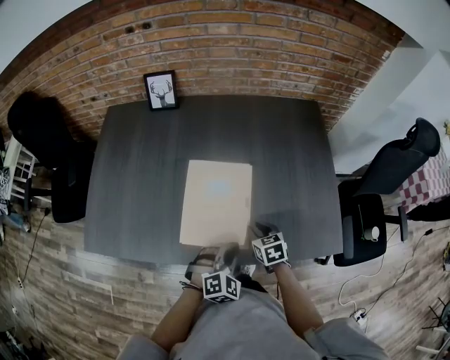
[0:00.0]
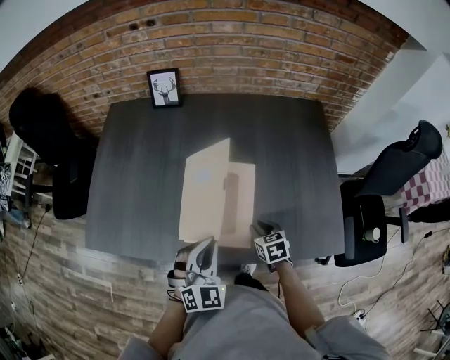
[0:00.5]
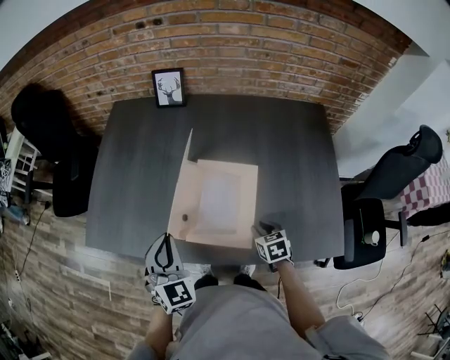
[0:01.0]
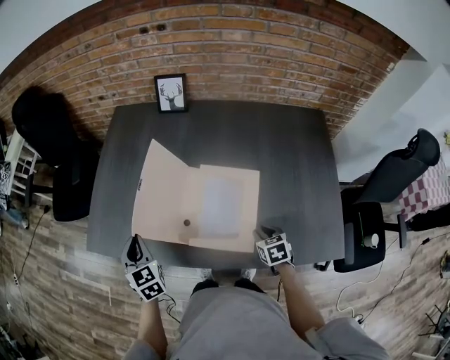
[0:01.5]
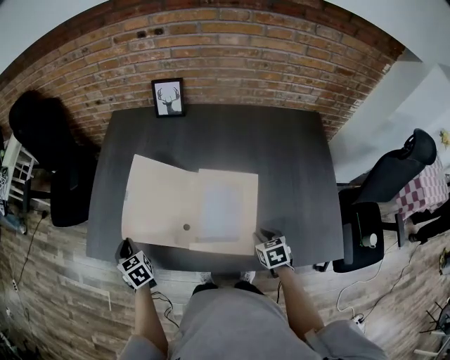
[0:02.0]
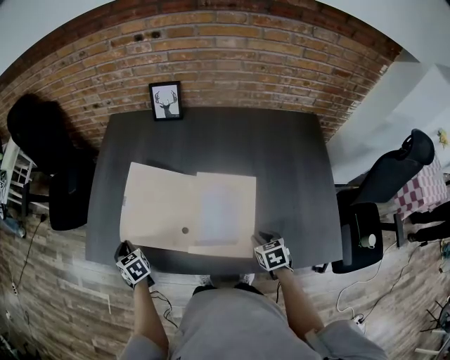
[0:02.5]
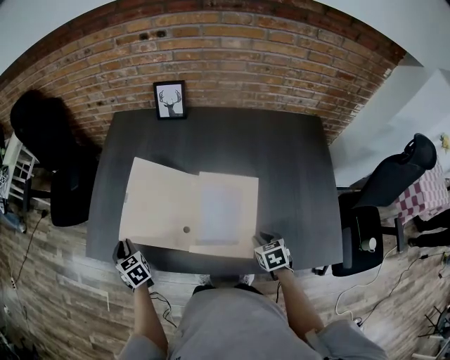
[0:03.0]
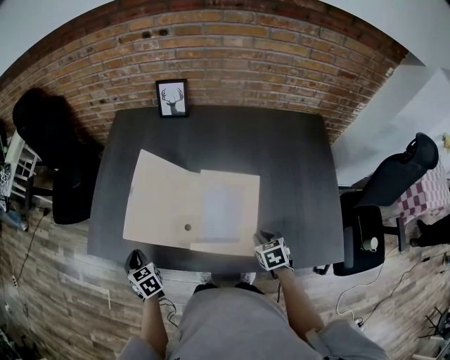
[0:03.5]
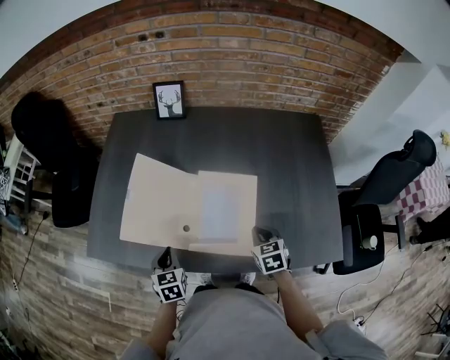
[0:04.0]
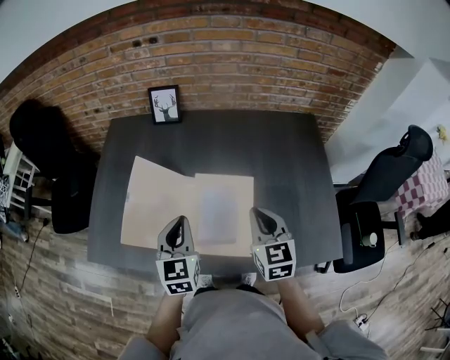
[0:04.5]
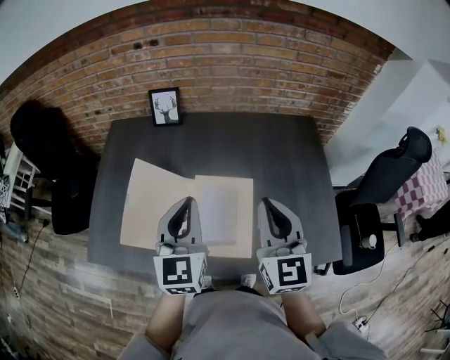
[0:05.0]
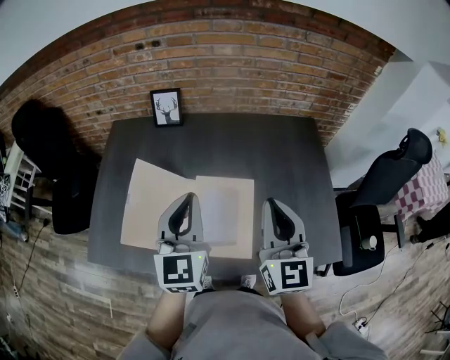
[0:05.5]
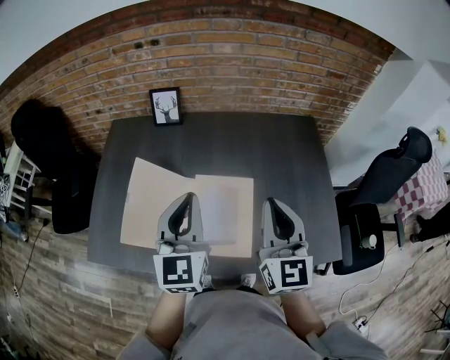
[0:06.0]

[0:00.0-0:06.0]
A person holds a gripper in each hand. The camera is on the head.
0:00.0 to 0:02.0: The left gripper moves approximately 10 cm upward and comes back, and swivels some 80 degrees.
0:02.0 to 0:04.0: The right gripper travels upward by about 5 cm, and closes, while the left gripper travels to the right and backward by some 15 cm, and changes its angle by approximately 20 degrees.
0:04.0 to 0:06.0: The right gripper goes roughly 30 cm upward, and tilts its fingers roughly 50 degrees upward. The left gripper goes approximately 30 cm upward and to the right, and tilts its fingers approximately 40 degrees upward.

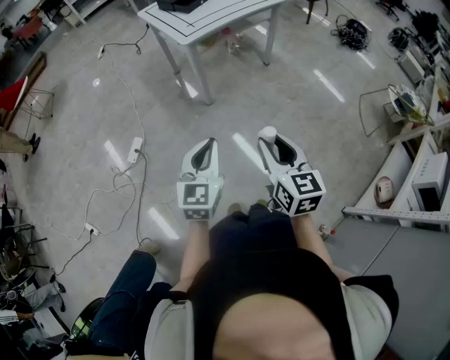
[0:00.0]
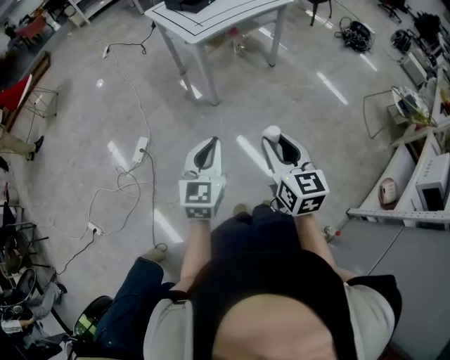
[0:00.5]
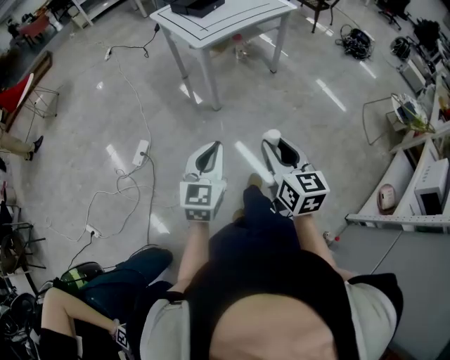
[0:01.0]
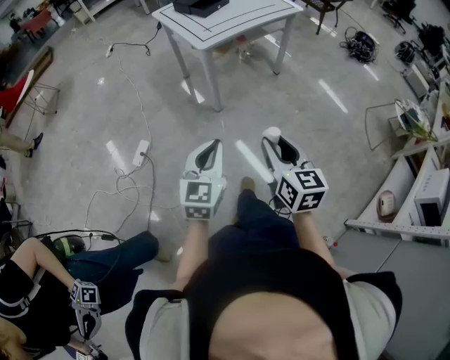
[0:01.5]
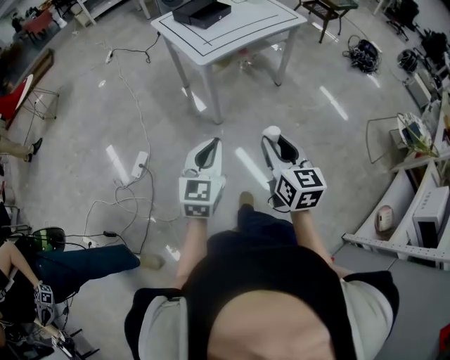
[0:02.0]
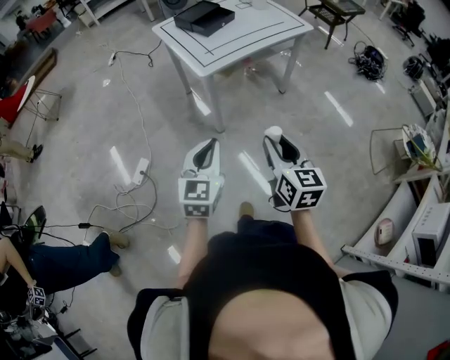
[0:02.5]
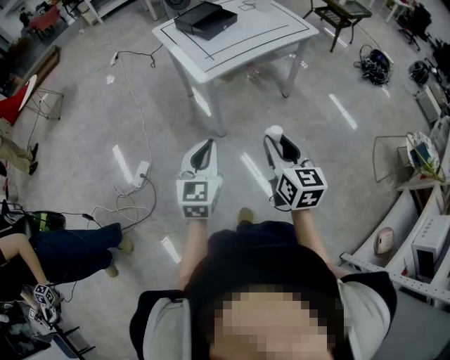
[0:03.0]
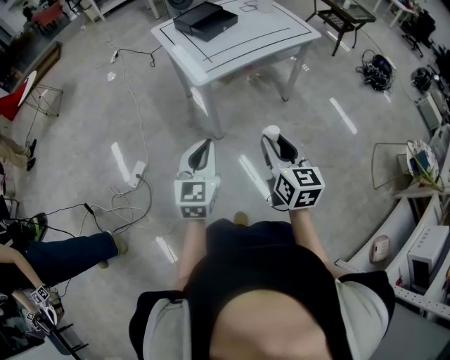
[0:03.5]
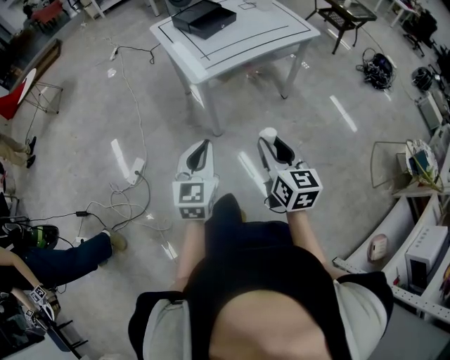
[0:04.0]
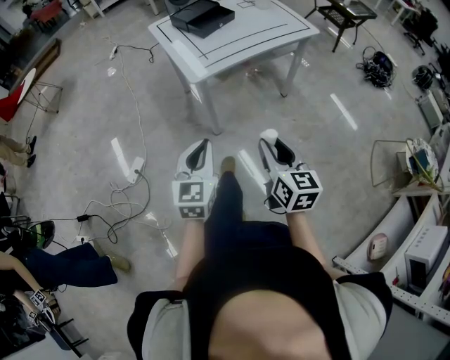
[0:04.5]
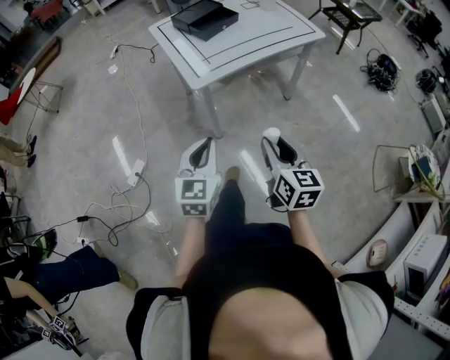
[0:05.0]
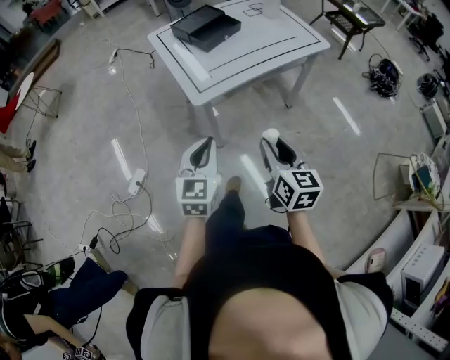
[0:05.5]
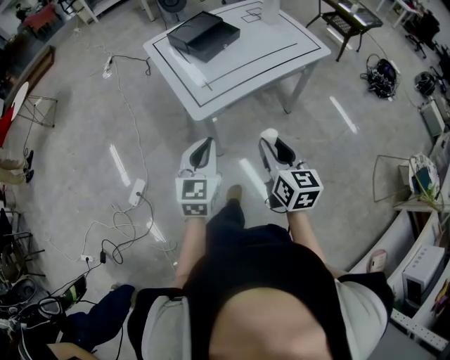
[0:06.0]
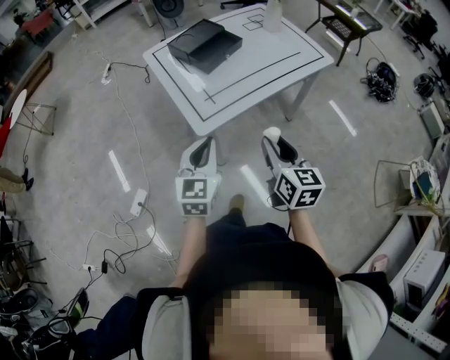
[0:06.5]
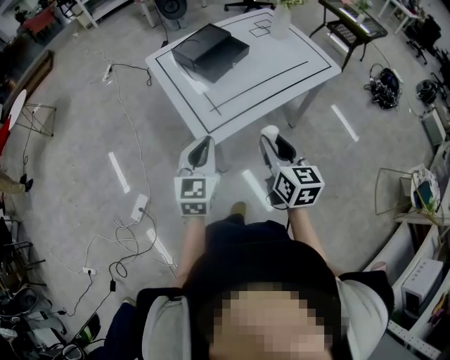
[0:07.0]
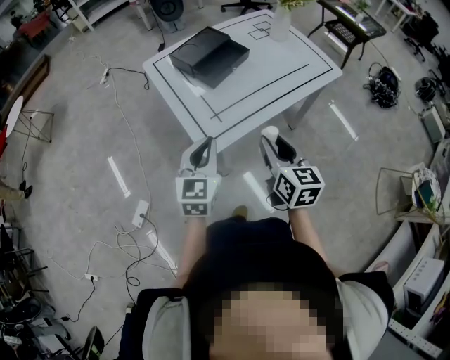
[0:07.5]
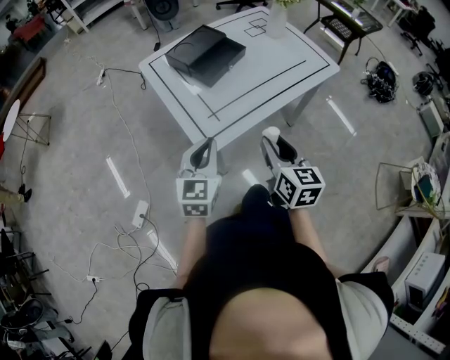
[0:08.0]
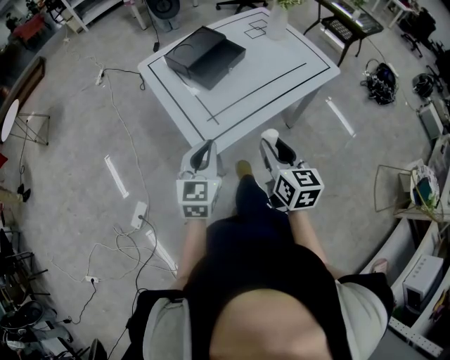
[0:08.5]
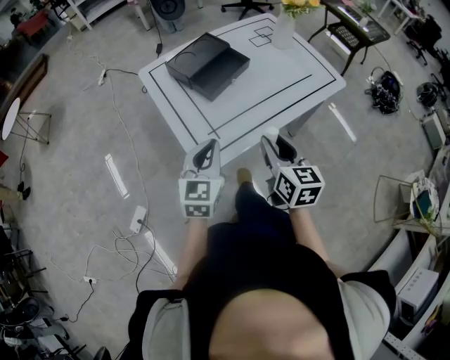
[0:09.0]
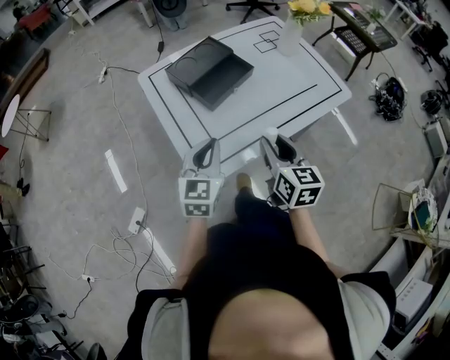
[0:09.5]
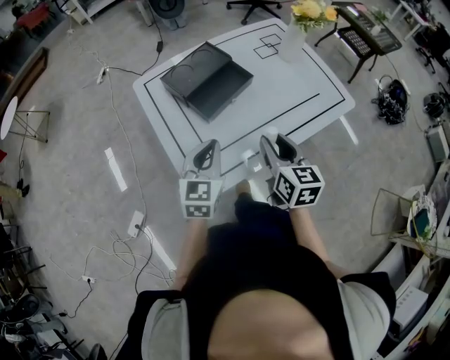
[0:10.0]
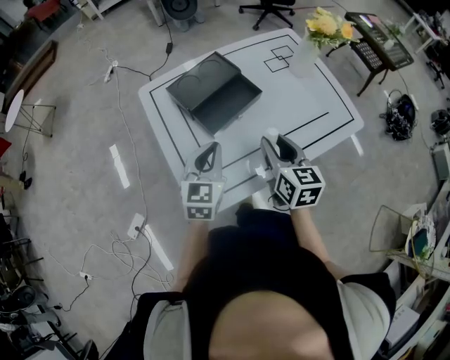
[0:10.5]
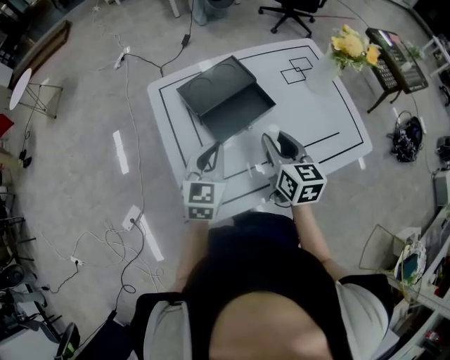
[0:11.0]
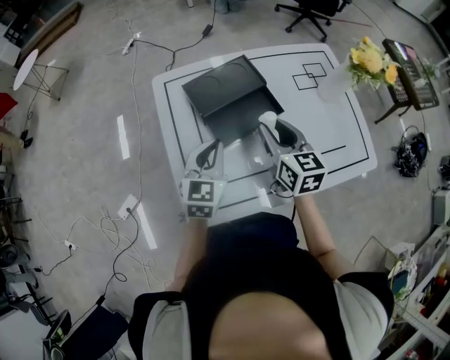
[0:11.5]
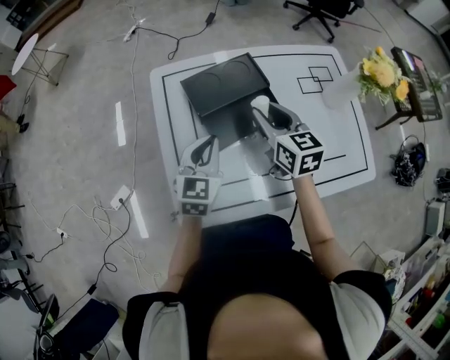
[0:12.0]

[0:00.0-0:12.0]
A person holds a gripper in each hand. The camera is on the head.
0:00.0 to 0:02.0: The grippers both shift forward by about 15 cm.
0:02.0 to 0:04.0: Both grippers move forward, roughly 15 cm.
0:04.0 to 0:06.0: The grippers both shift forward by some 20 cm.
0:06.0 to 0:08.0: The two grippers go some 15 cm forward.
0:08.0 to 0:10.0: The two grippers go some 20 cm forward.
0:10.0 to 0:12.0: The right gripper heads forward, covering roughly 25 cm, and swivels roughly 30 degrees. The left gripper moves forward, about 15 cm.

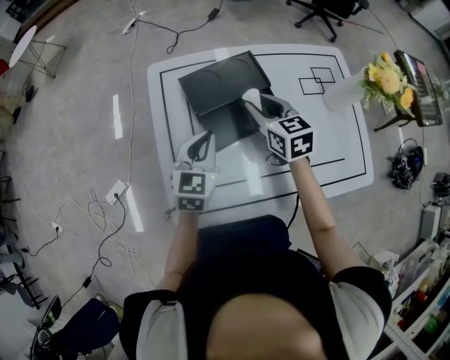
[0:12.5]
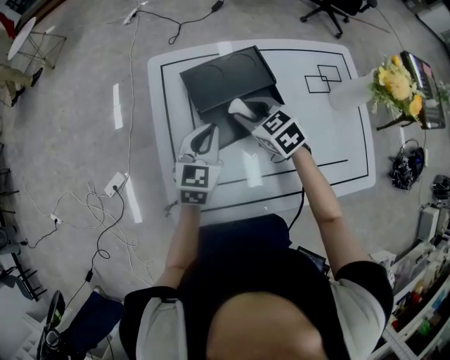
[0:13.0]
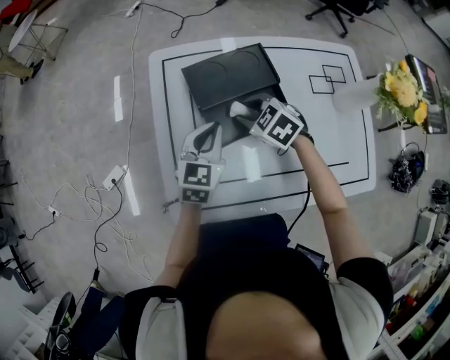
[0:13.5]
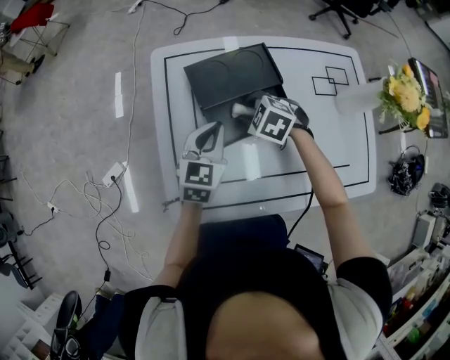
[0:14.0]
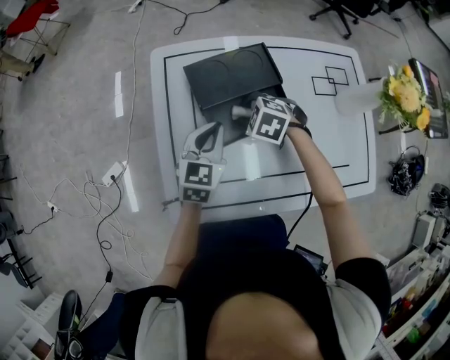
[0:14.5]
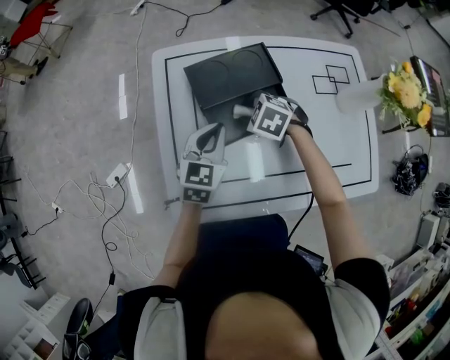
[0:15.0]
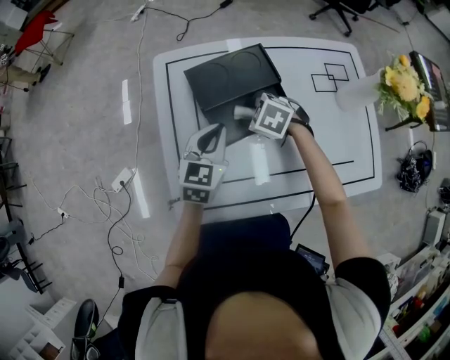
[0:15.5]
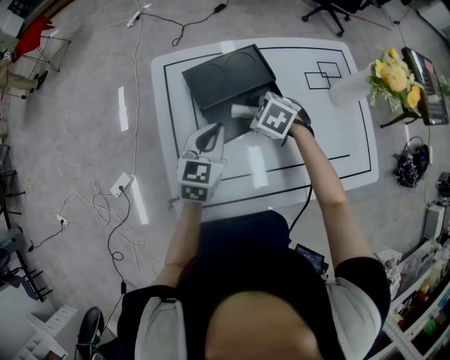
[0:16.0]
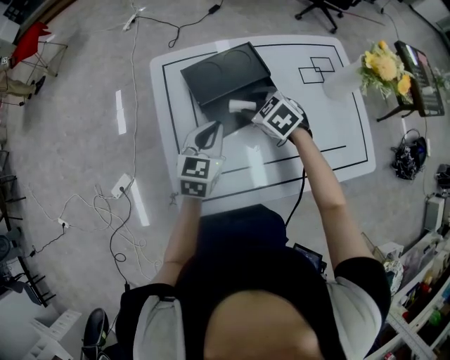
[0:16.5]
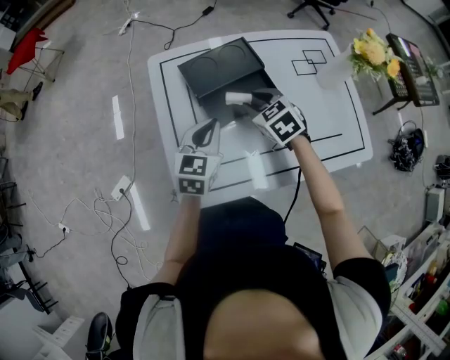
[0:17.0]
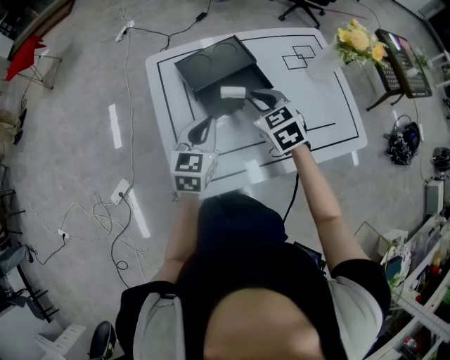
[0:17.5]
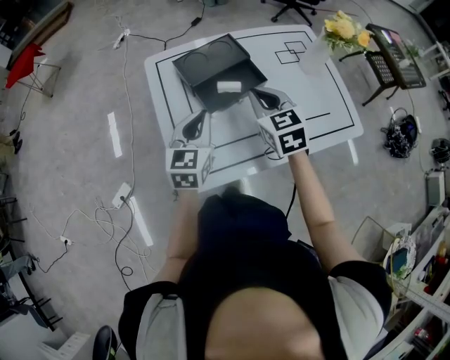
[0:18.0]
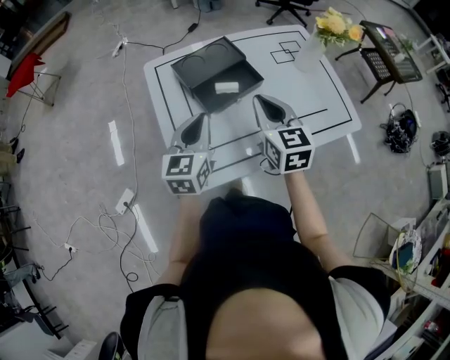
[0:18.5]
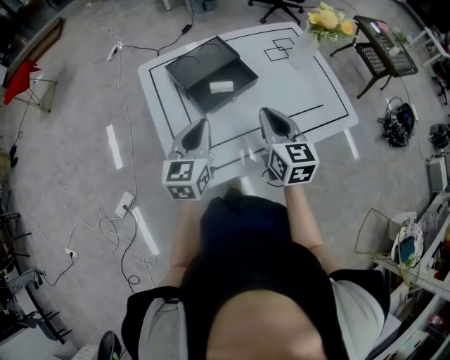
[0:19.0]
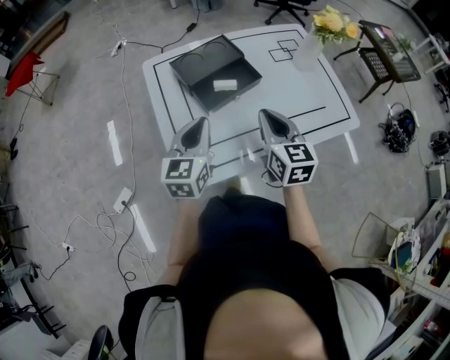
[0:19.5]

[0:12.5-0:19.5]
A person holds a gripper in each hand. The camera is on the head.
0:12.5 to 0:14.5: The right gripper goes approximately 10 cm downward, and tilts its fingers approximately 40 degrees downward.
0:14.5 to 0:16.0: The right gripper opens.
0:16.0 to 0:17.5: The left gripper moves backward, some 5 cm. Meanwhile the right gripper moves upward and backward, roughly 15 cm, swivels approximately 40 degrees, and closes its fingers.
0:17.5 to 0:19.5: The left gripper is displaced backward by some 5 cm, while the right gripper is displaced backward and upward by roughly 15 cm, and changes its angle by roughly 40 degrees.

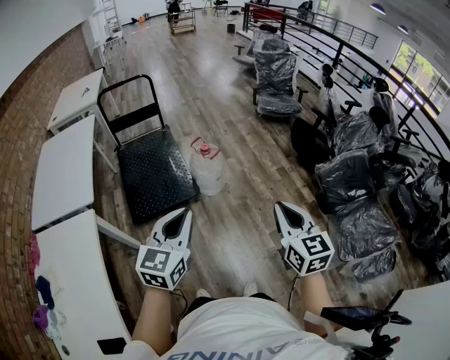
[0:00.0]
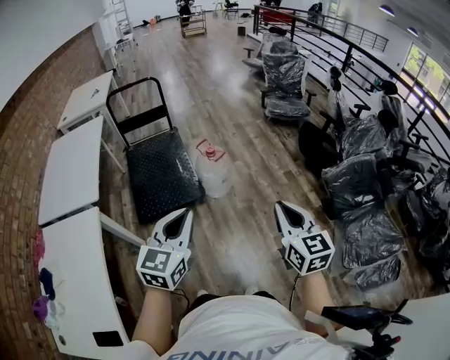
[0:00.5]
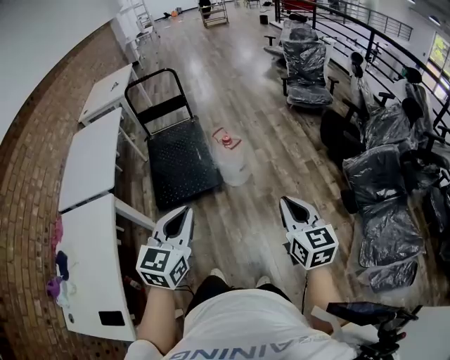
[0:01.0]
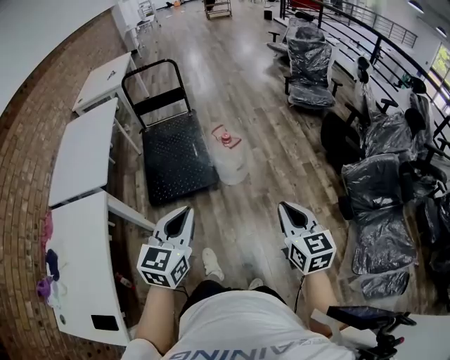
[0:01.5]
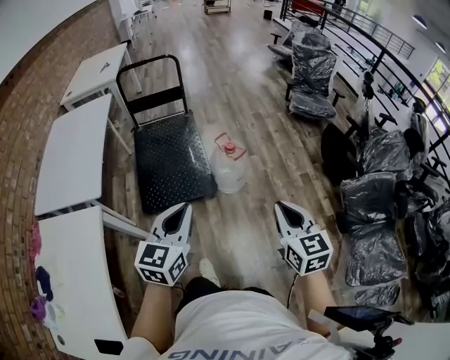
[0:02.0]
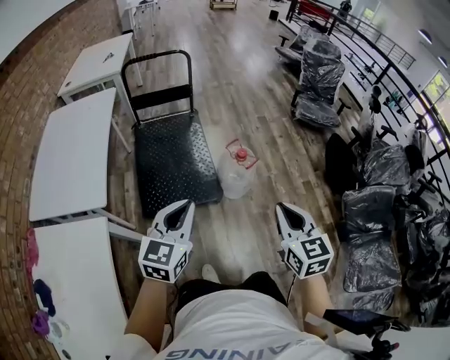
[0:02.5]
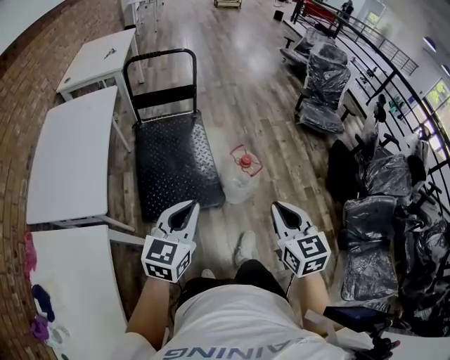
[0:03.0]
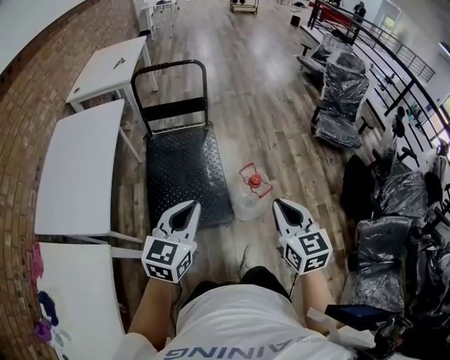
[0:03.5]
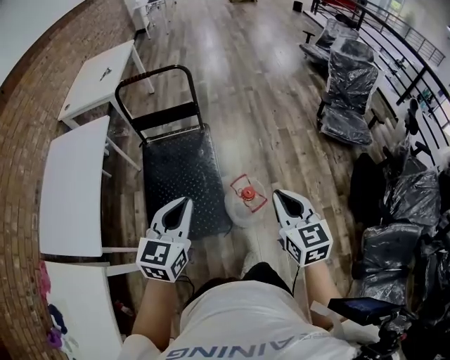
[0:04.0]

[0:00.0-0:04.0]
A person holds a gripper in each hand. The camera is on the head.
0:00.0 to 0:02.0: The grippers both shift forward and to the left by some 15 cm.
0:02.0 to 0:04.0: The two grippers go approximately 35 cm forward.
